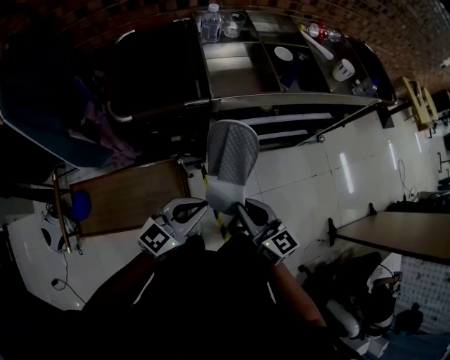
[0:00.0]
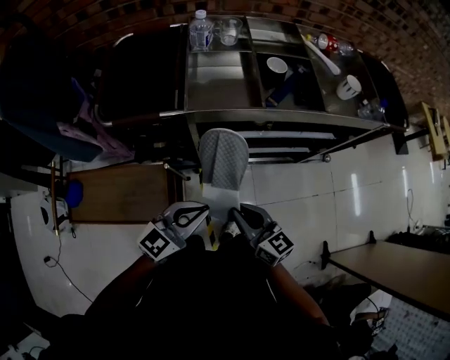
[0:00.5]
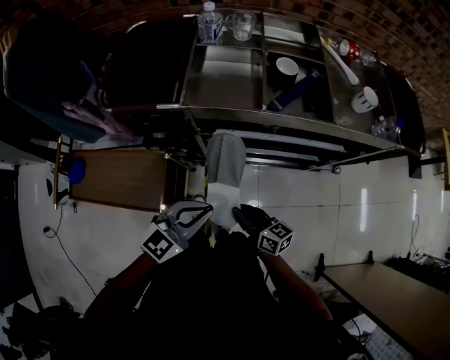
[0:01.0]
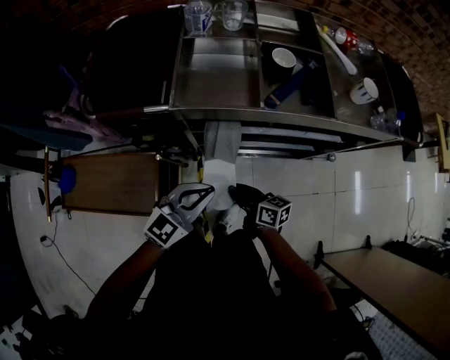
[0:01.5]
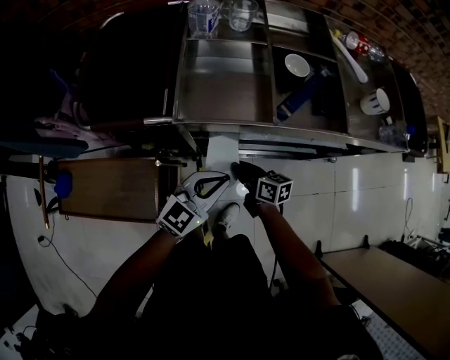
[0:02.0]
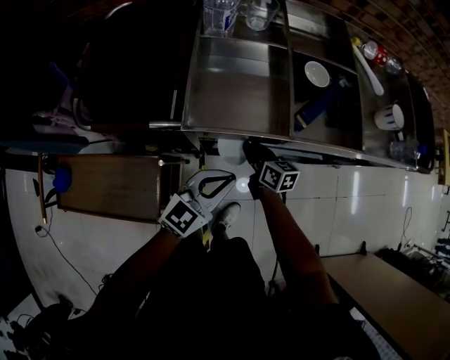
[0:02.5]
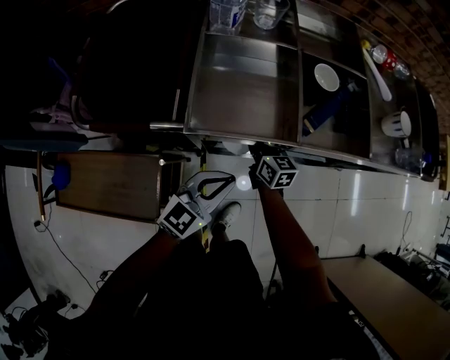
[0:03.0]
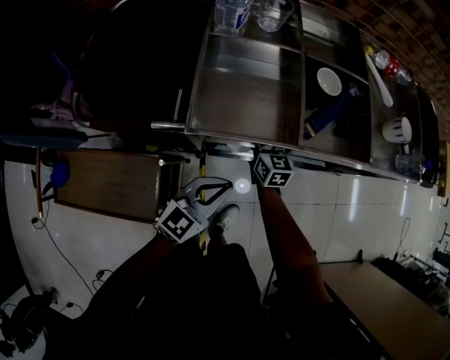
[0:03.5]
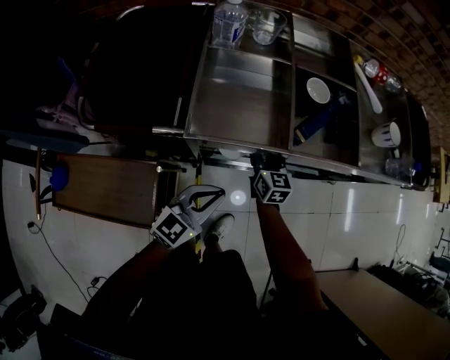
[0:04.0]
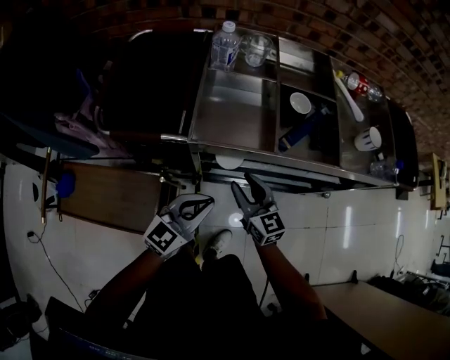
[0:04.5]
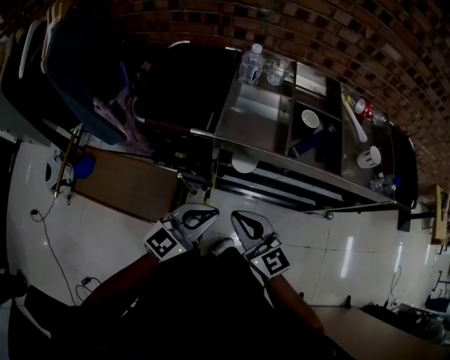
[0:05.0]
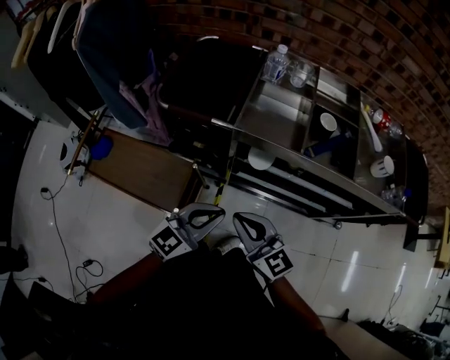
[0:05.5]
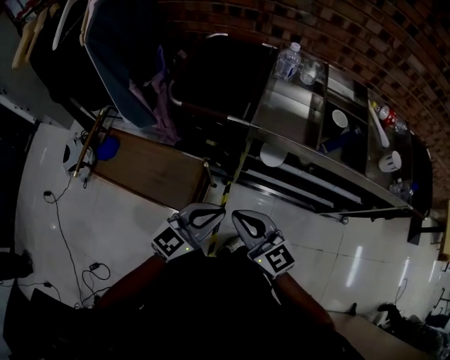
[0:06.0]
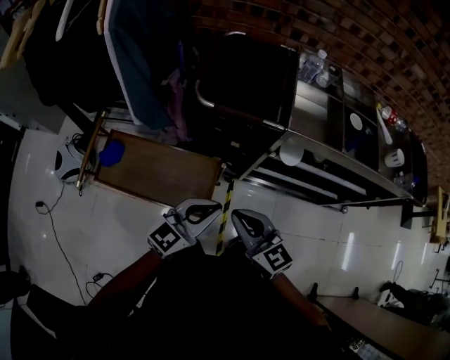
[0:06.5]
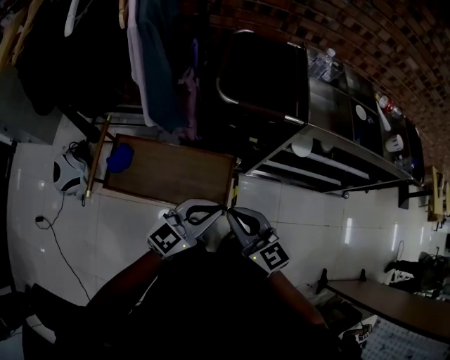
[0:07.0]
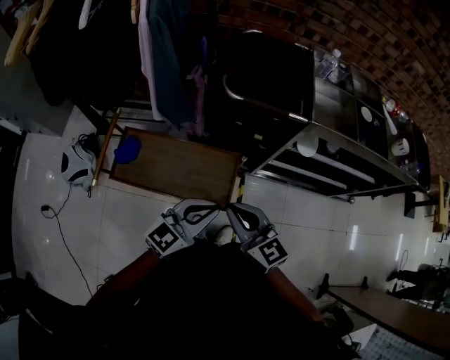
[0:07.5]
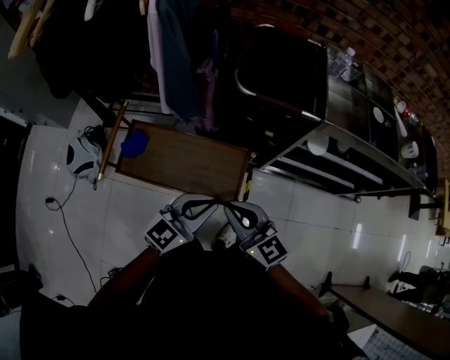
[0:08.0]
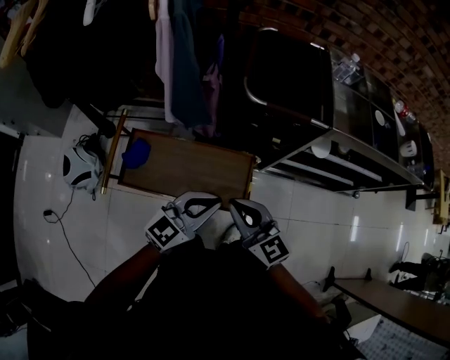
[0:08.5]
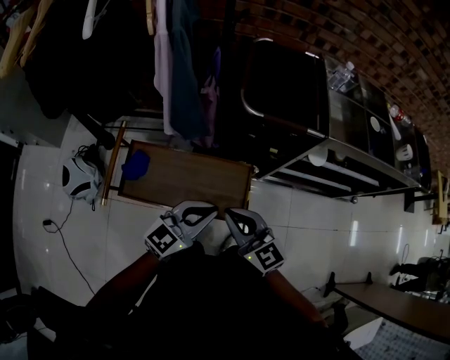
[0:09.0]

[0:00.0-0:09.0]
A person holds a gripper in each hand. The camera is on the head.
0:00.0 to 0:02.0: The right gripper heads forward, downward and to the right, covering some 30 cm, and turns by roughly 40 degrees, while the left gripper heads forward and to the right, covering some 25 cm.
0:02.0 to 0:04.5: The left gripper changes place by some 5 cm; the right gripper shifts some 15 cm upward, reaches about 15 cm forward, then returns, swivels some 40 degrees, and opens.
0:04.5 to 0:07.0: Both grippers travel together to the left and backward, about 40 cm. The right gripper closes up.
0:07.0 to 0:09.0: The two grippers go roughly 10 cm to the left.

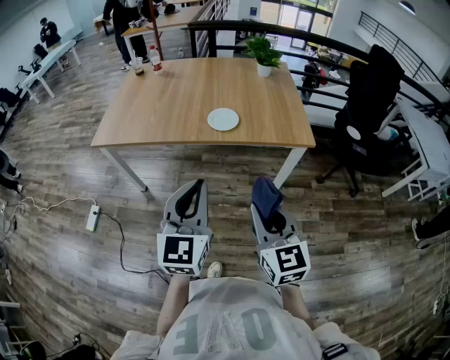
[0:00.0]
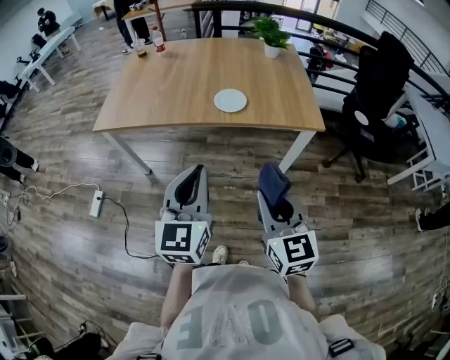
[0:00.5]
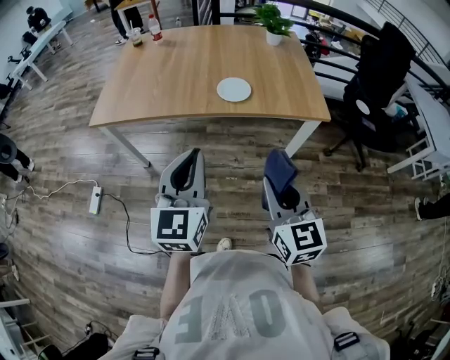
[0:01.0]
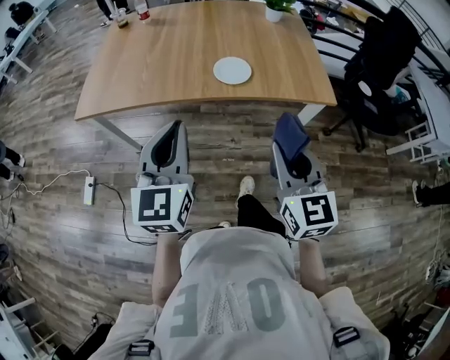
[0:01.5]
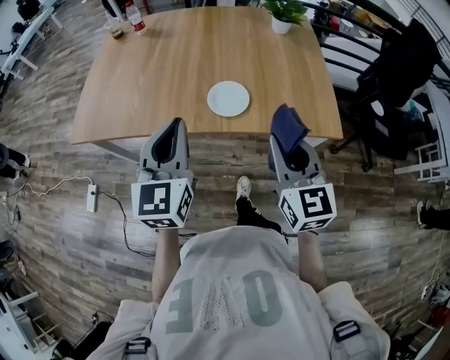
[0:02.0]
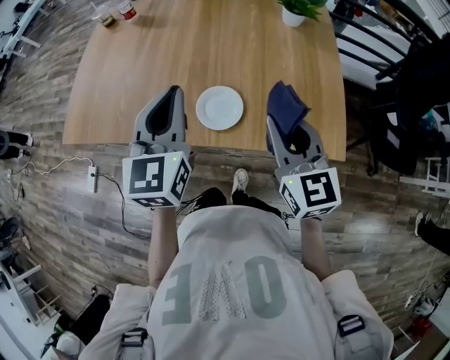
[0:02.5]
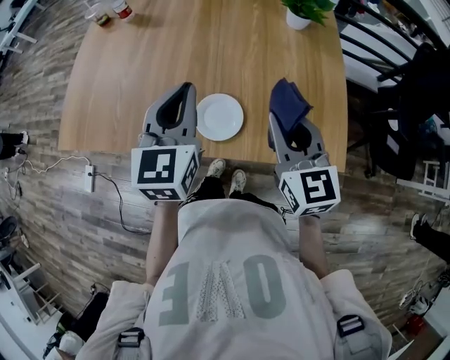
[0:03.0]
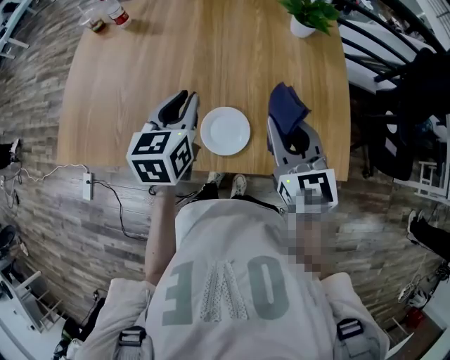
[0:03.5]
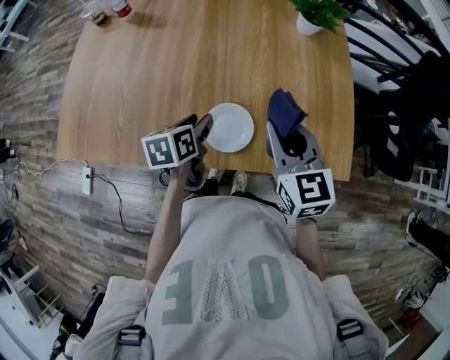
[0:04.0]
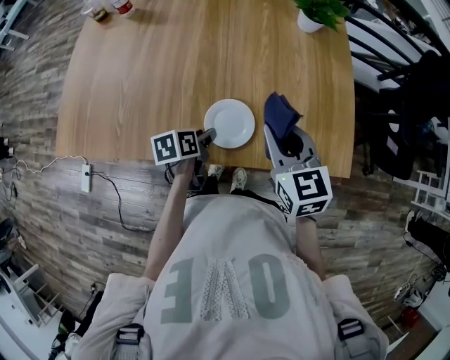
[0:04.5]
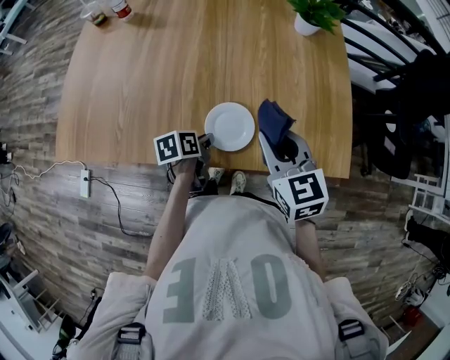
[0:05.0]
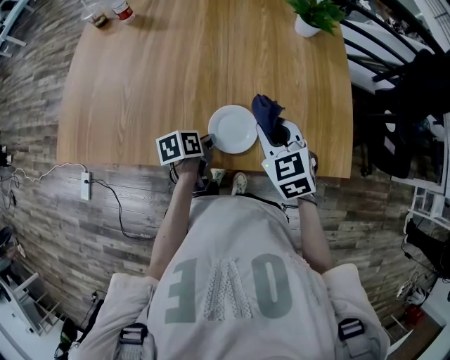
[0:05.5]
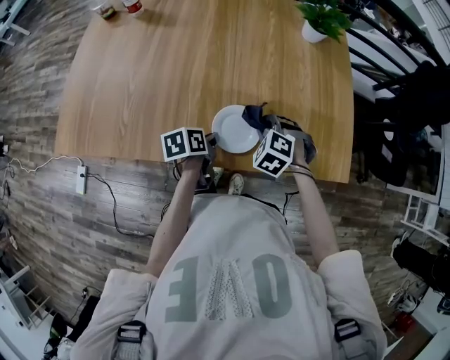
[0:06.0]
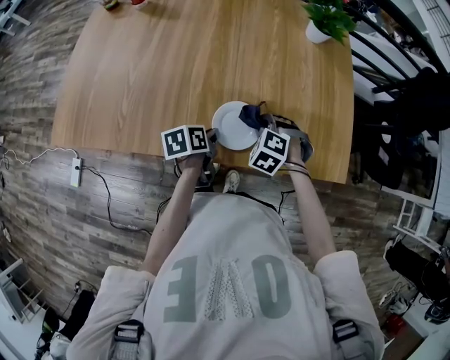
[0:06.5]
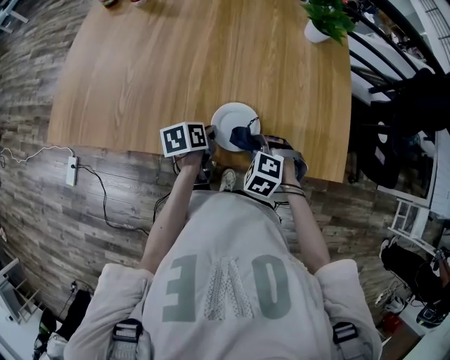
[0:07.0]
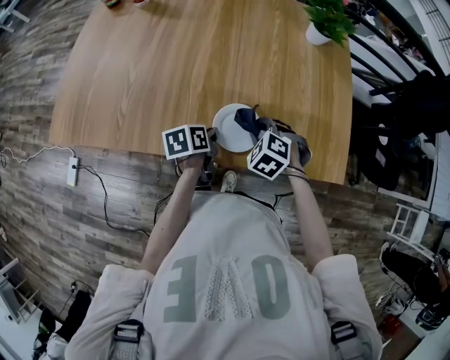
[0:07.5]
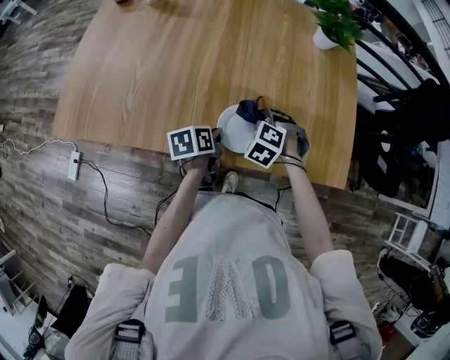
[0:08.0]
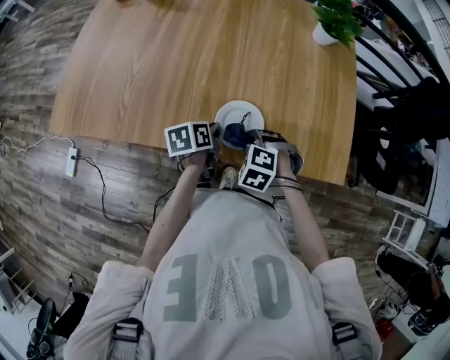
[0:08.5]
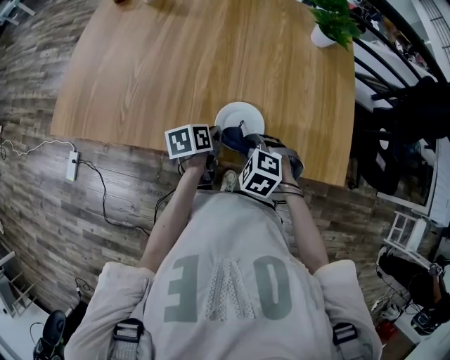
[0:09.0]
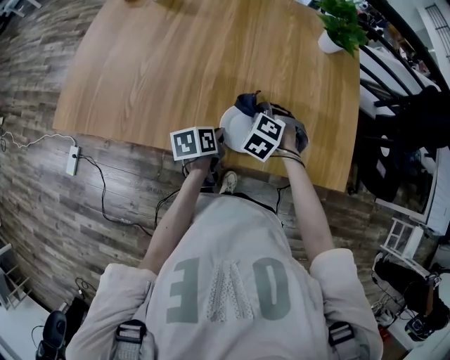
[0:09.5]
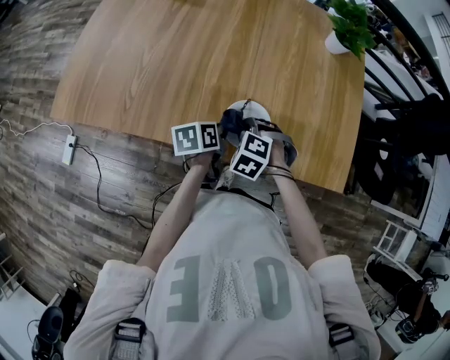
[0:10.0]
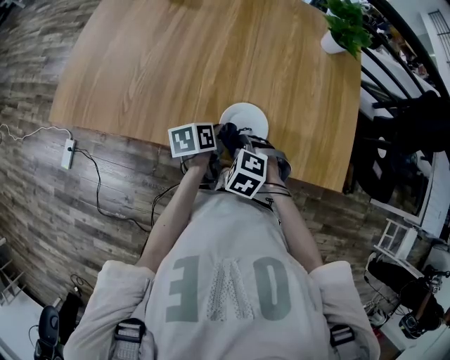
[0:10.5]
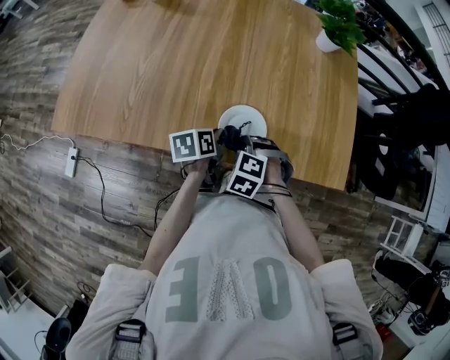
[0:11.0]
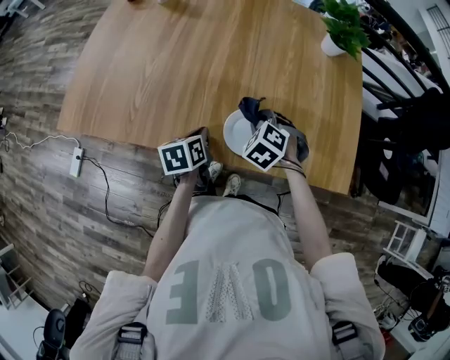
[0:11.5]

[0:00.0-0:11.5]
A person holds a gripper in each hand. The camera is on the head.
0:00.0 to 0:02.0: Both grippers travel together forward, about 30 cm.
0:02.0 to 0:04.0: The left gripper travels forward and downward by some 30 cm, tilts its fingers roughly 40 degrees downward, and opens, while the right gripper shifts roughly 20 cm forward.
0:04.0 to 0:06.0: The right gripper shifts about 20 cm downward, and points its fingers about 40 degrees further downward, while the left gripper goes about 10 cm downward, and closes.
0:06.0 to 0:07.5: The right gripper travels backward and back again, about 10 cm each way.
0:07.5 to 0:09.5: The right gripper changes place by roughly 5 cm.
0:09.5 to 0:11.5: The left gripper moves to the left, some 5 cm. The right gripper goes backward and returns, roughly 15 cm each way.

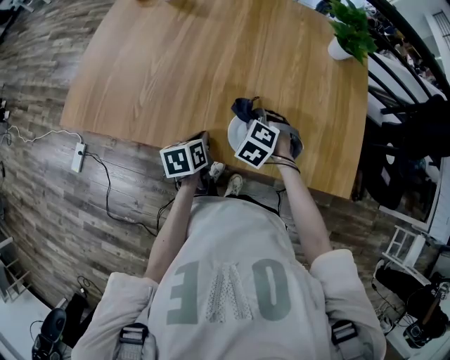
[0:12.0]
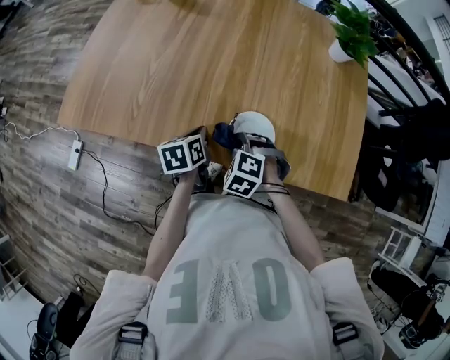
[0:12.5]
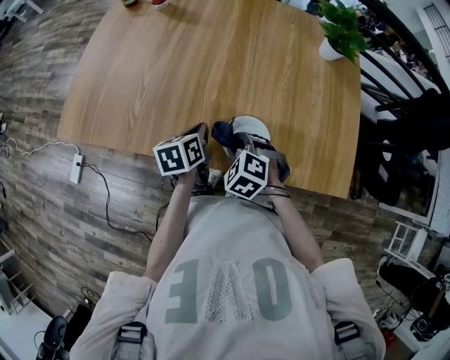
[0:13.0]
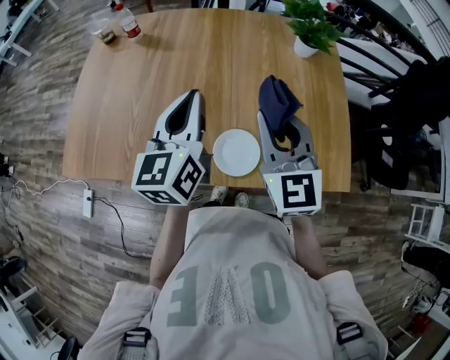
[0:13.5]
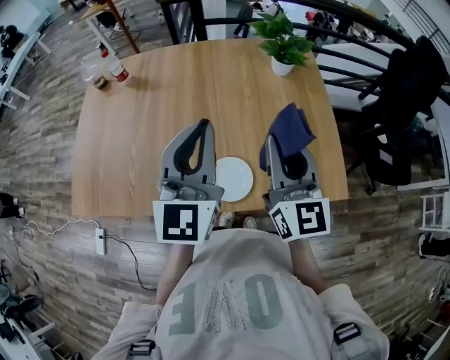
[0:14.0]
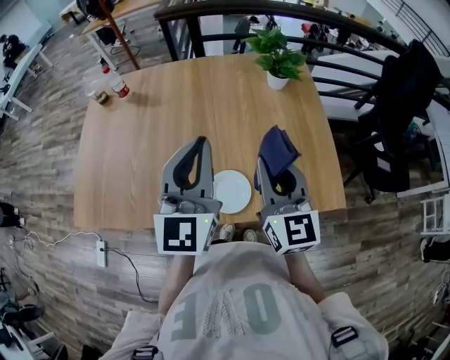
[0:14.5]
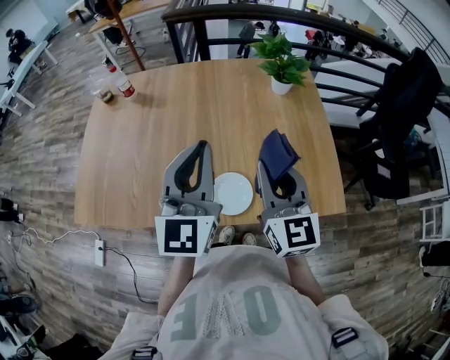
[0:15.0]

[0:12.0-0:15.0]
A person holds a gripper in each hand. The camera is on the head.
0:12.0 to 0:13.5: The two grippers go roughly 30 cm upward. The left gripper angles its fingers upward, by some 40 degrees. Meanwhile the right gripper tilts its fingers approximately 60 degrees upward.
0:13.5 to 0:15.0: The left gripper is displaced upward and to the right by approximately 10 cm, and swivels approximately 20 degrees. Meanwhile the right gripper is displaced to the right by about 5 cm.

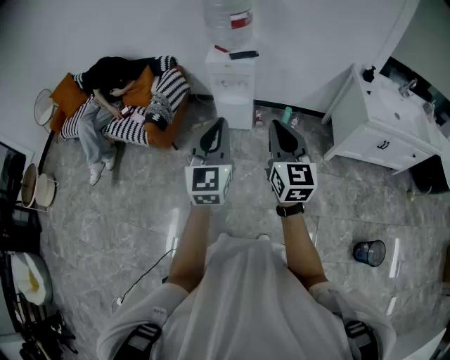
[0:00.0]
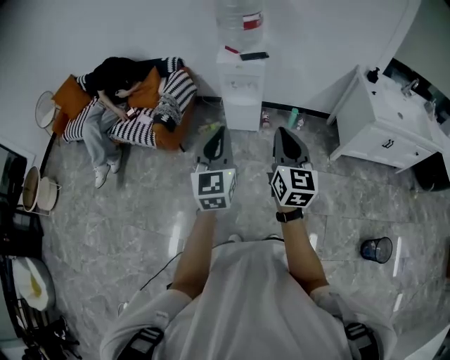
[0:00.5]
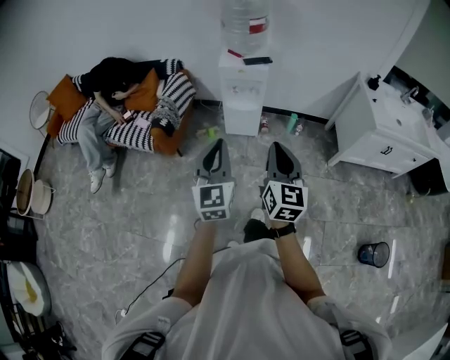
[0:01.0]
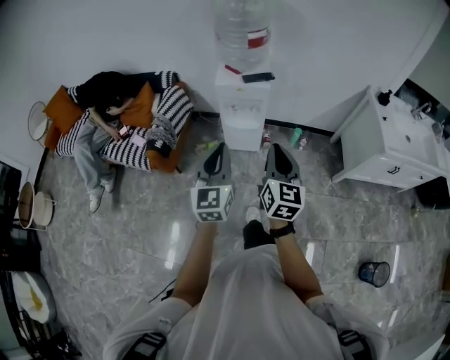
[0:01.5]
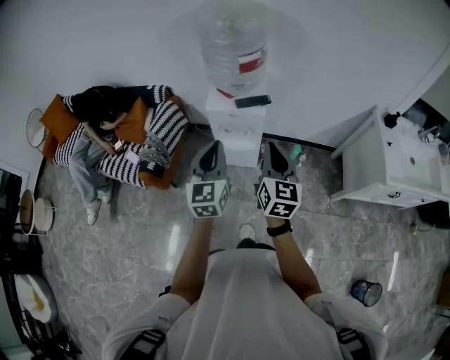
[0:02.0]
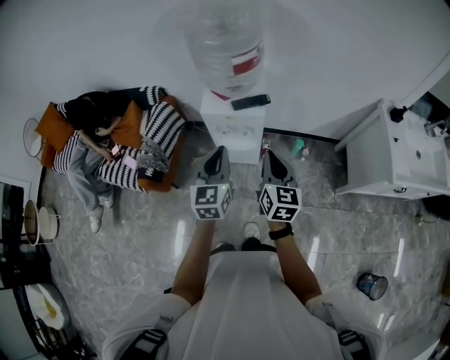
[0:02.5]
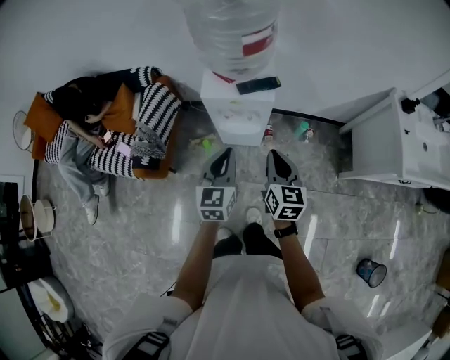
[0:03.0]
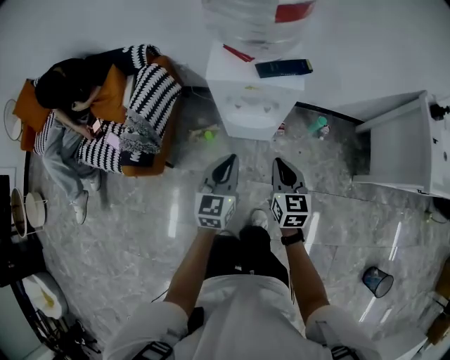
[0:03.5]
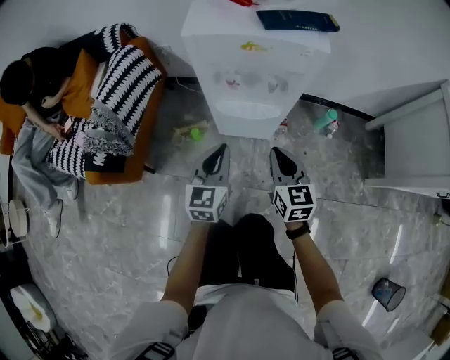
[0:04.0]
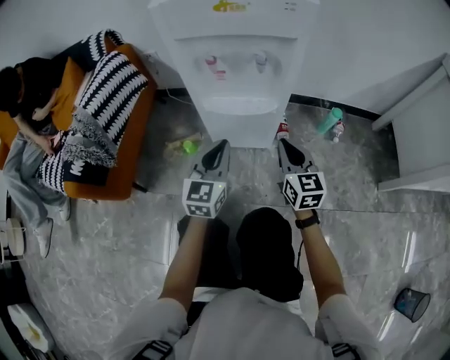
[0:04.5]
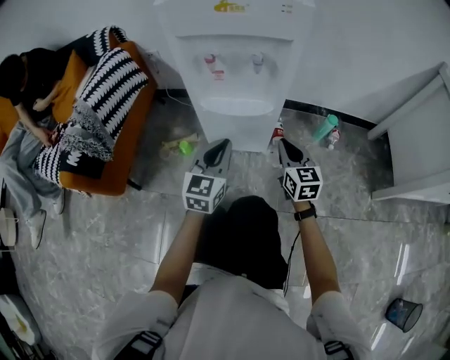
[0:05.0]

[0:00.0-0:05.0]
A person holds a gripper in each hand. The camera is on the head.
0:00.0 to 0:02.5: The two grippers travel together, forward, about 40 cm.
0:02.5 to 0:05.0: Both grippers travel together downward, some 60 cm.
